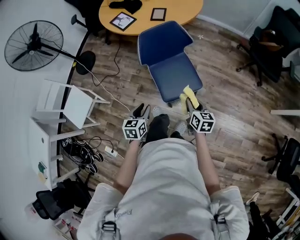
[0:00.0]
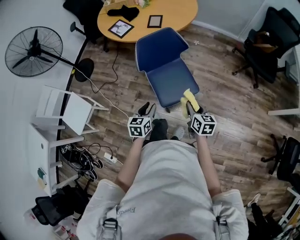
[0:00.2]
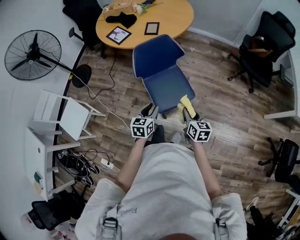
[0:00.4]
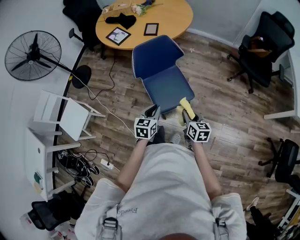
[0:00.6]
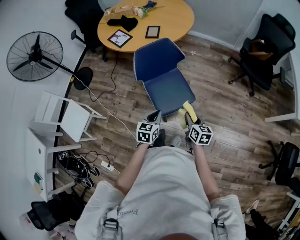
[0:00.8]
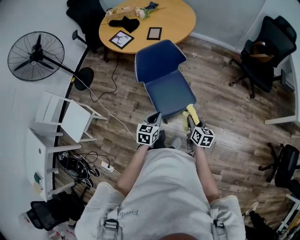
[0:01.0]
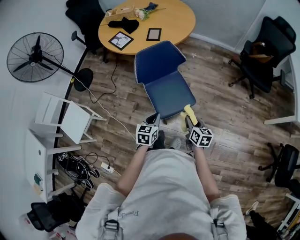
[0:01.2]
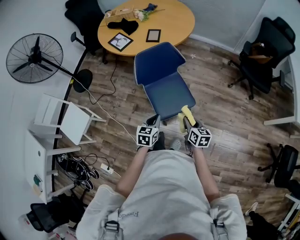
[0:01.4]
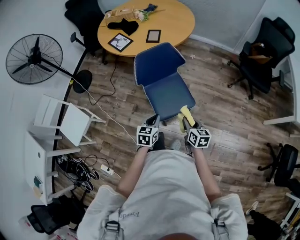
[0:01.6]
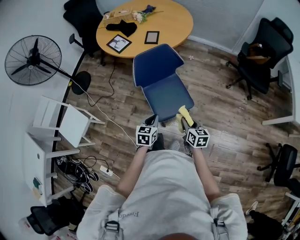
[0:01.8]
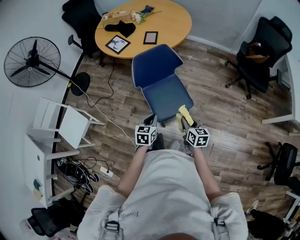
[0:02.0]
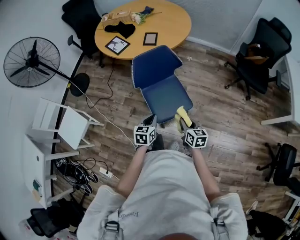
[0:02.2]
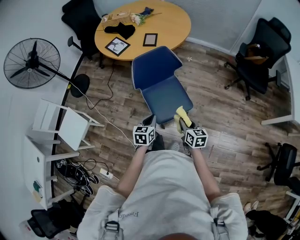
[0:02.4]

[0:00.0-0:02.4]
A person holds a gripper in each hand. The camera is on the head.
0:00.0 to 0:01.2: The left gripper moves to the right, approximately 10 cm, and closes its fingers.
0:01.2 to 0:02.4: The grippers make only small movements.

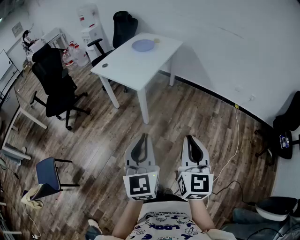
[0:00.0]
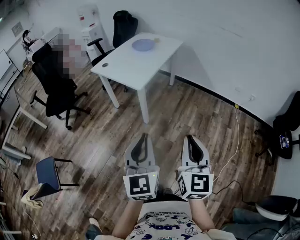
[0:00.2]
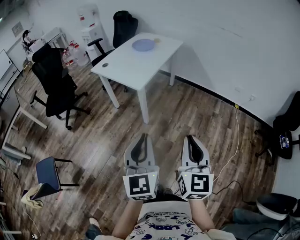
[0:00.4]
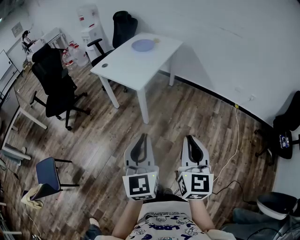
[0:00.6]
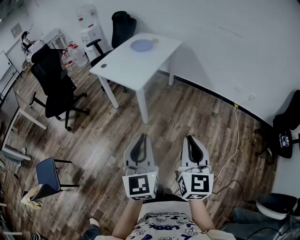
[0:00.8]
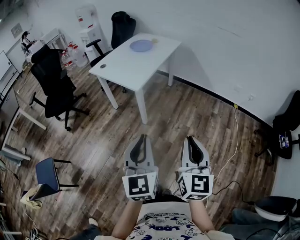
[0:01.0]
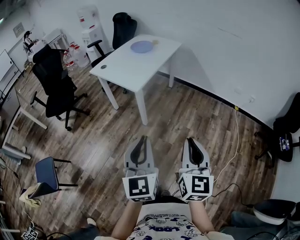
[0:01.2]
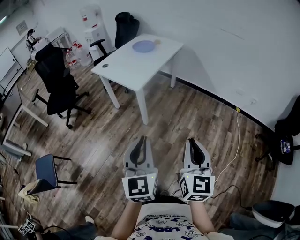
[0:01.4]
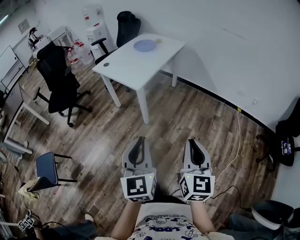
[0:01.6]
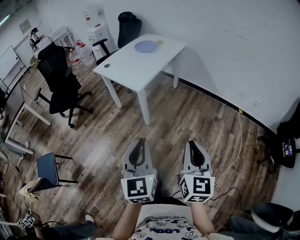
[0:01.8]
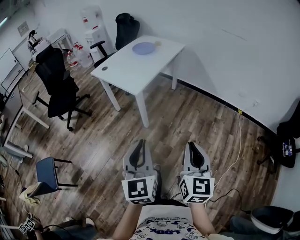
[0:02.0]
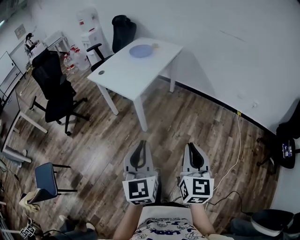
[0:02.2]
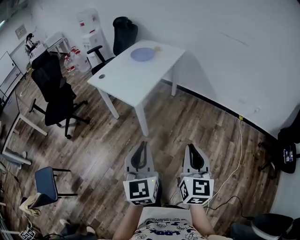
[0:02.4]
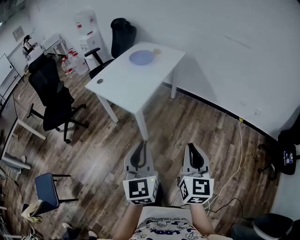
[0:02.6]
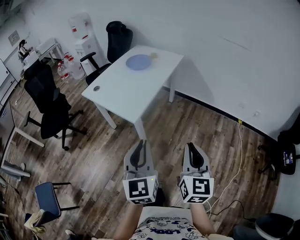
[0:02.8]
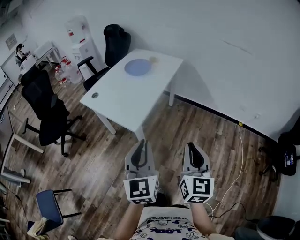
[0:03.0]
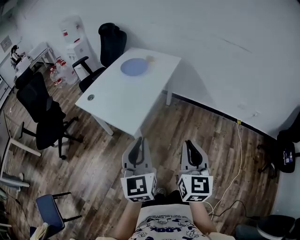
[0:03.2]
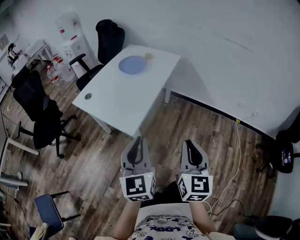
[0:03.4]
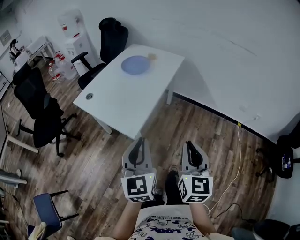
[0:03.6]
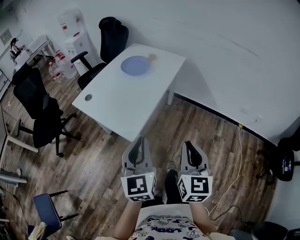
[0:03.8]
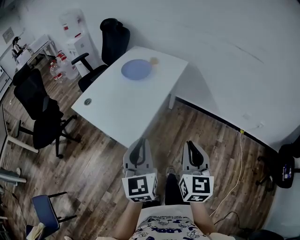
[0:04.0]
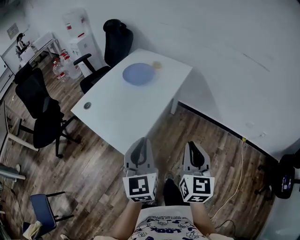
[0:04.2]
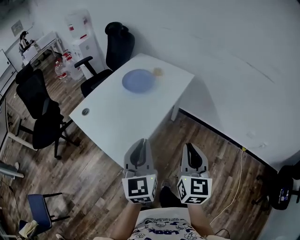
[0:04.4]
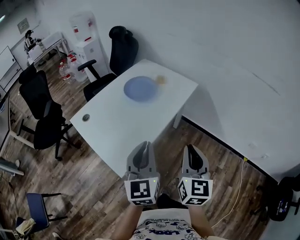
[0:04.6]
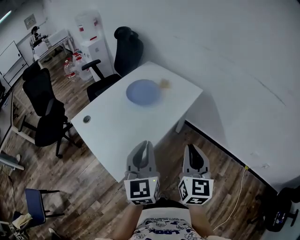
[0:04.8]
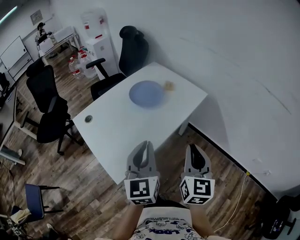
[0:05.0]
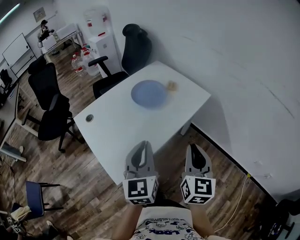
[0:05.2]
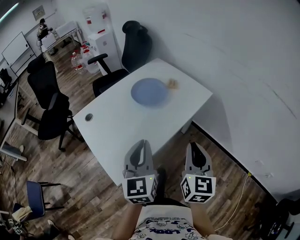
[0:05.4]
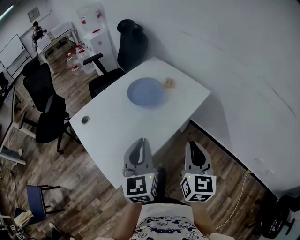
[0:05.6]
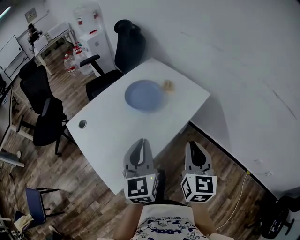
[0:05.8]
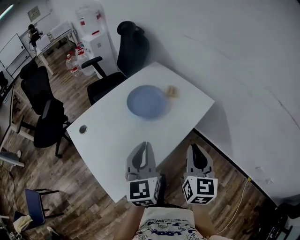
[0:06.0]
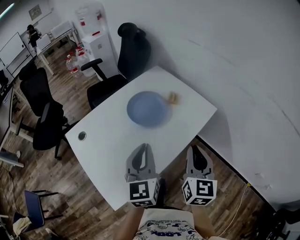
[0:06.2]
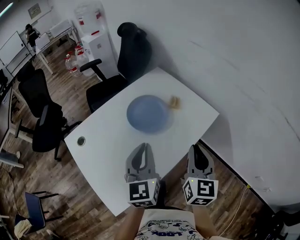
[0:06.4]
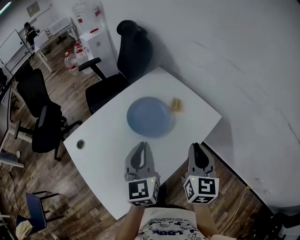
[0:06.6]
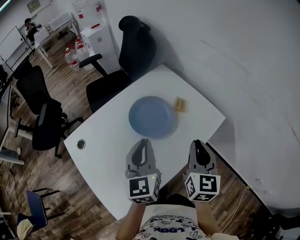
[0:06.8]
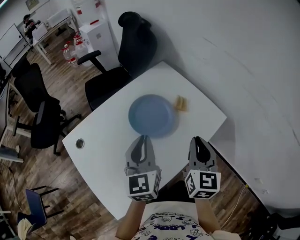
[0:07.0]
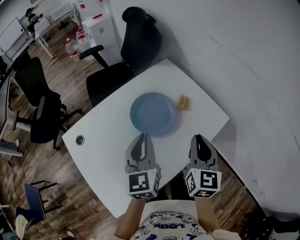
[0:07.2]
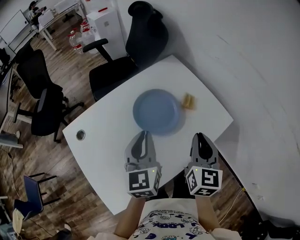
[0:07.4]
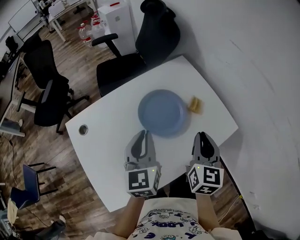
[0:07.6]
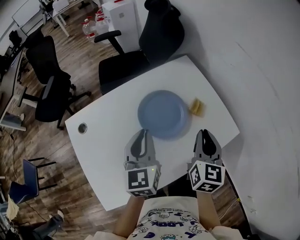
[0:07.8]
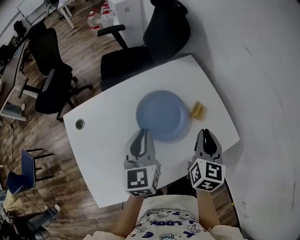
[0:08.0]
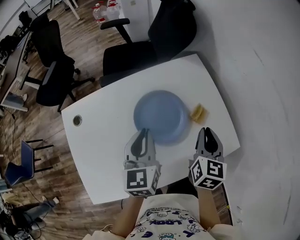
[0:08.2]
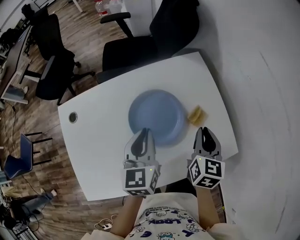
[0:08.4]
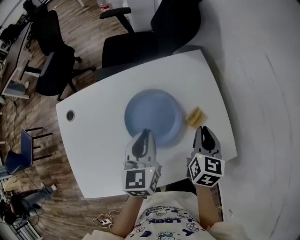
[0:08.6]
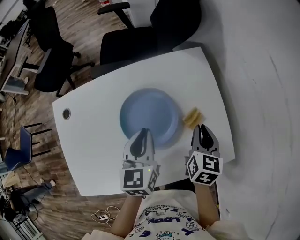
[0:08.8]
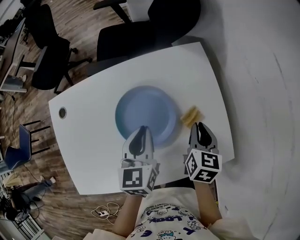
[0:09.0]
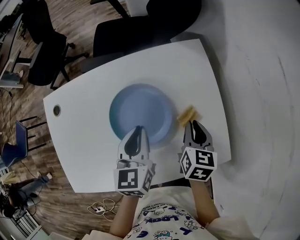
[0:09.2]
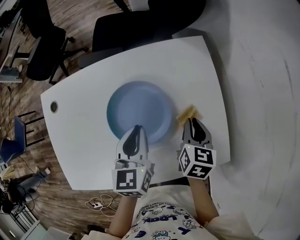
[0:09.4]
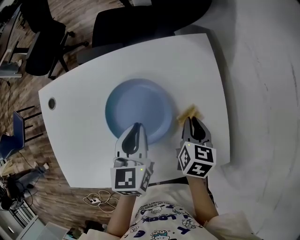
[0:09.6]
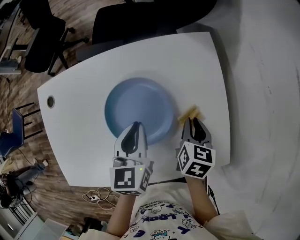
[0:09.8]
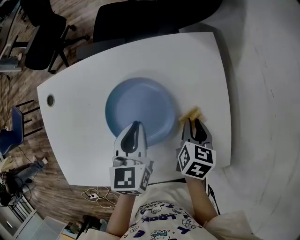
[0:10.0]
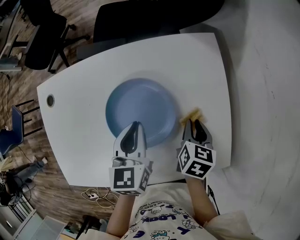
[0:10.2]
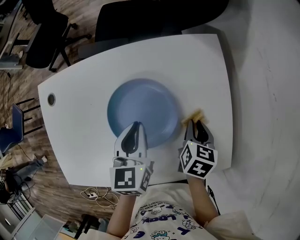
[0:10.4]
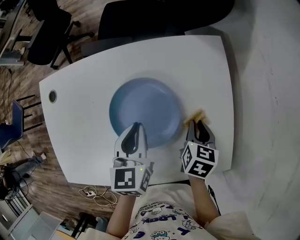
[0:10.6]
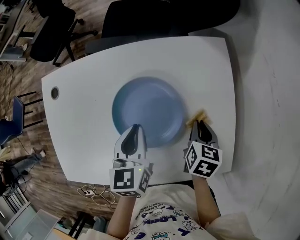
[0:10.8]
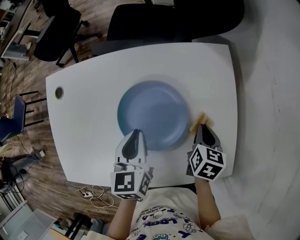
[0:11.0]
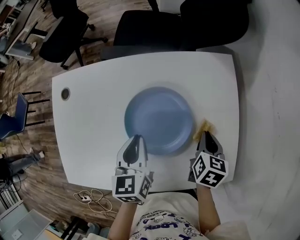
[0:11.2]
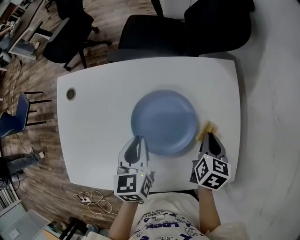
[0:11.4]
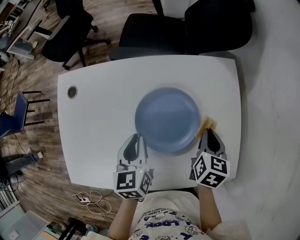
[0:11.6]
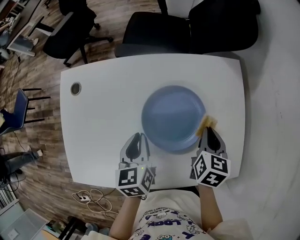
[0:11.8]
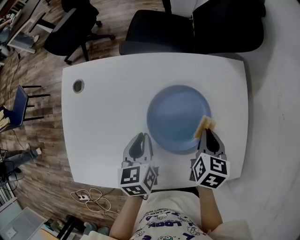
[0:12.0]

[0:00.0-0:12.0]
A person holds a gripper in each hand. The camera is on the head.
0:00.0 to 0:01.6: The right gripper moves roughly 5 cm.
0:01.6 to 0:03.0: Both grippers move forward, roughly 30 cm.
0:03.0 to 0:04.4: The two grippers go about 25 cm forward.
0:04.4 to 0:06.0: The two grippers go about 25 cm forward.
0:06.0 to 0:07.6: Both grippers move forward, approximately 20 cm.
0:07.6 to 0:09.0: Both grippers travel together forward, downward and to the right, approximately 20 cm. The right gripper turns by roughly 30 degrees.
0:09.0 to 0:10.4: The right gripper moves downward, approximately 10 cm, while the left gripper changes place by some 5 cm.
0:10.4 to 0:12.0: The right gripper goes some 10 cm to the left and upward. Meanwhile the left gripper travels to the left and backward by approximately 15 cm.

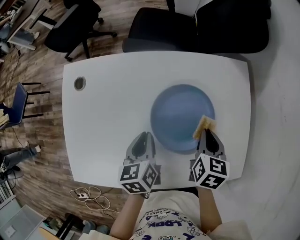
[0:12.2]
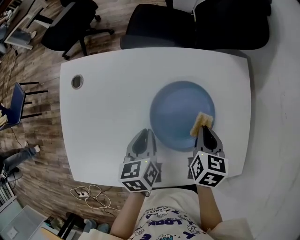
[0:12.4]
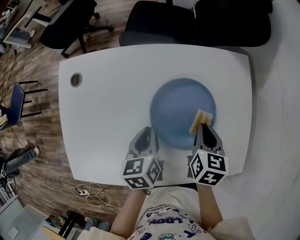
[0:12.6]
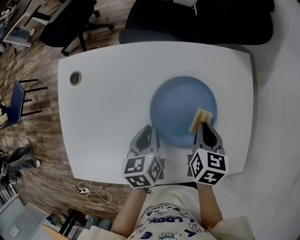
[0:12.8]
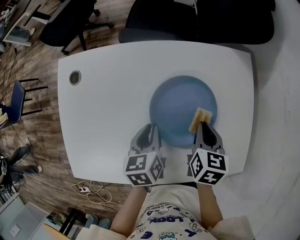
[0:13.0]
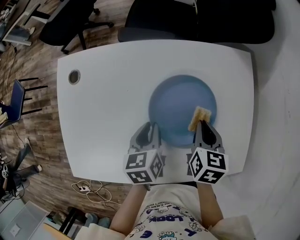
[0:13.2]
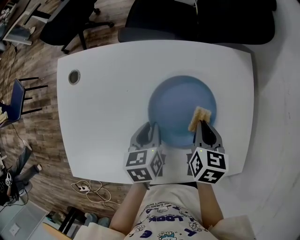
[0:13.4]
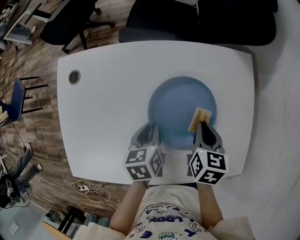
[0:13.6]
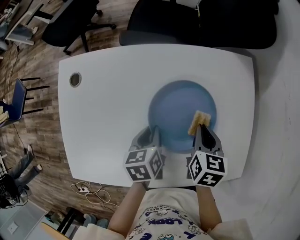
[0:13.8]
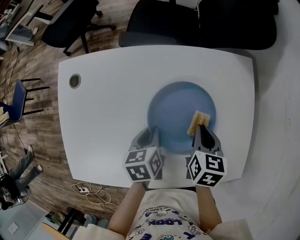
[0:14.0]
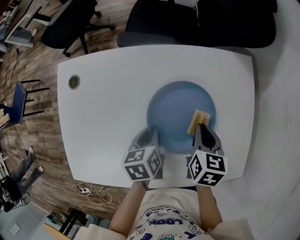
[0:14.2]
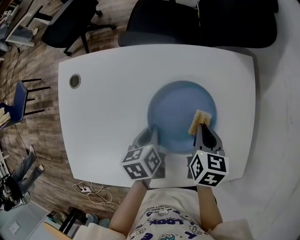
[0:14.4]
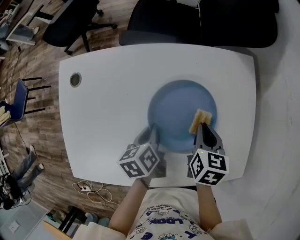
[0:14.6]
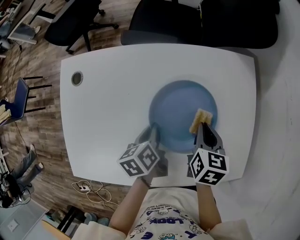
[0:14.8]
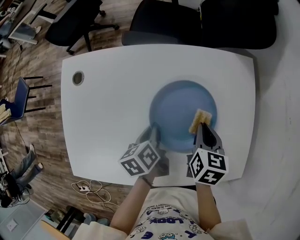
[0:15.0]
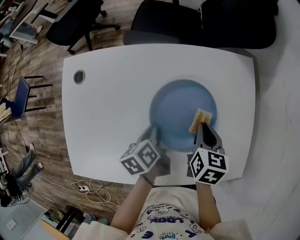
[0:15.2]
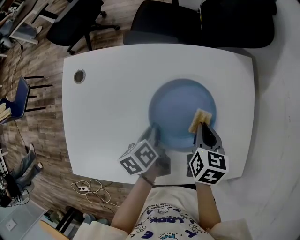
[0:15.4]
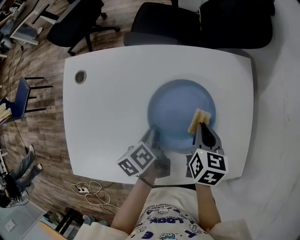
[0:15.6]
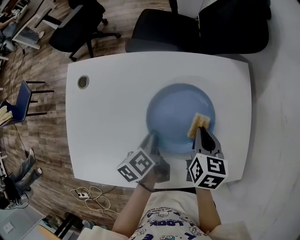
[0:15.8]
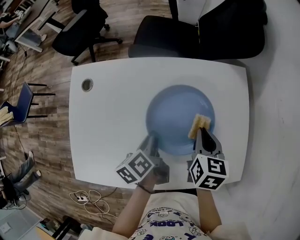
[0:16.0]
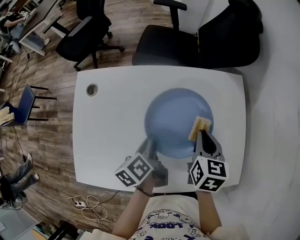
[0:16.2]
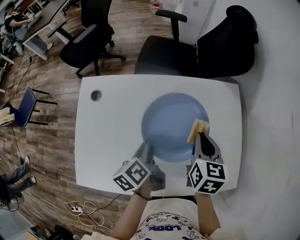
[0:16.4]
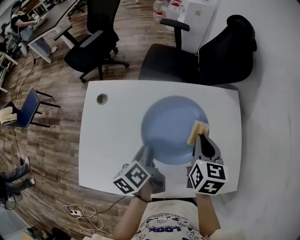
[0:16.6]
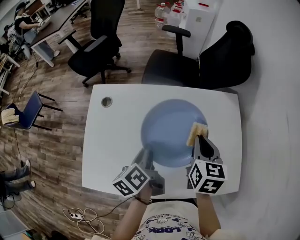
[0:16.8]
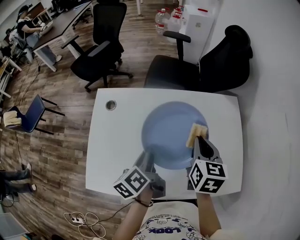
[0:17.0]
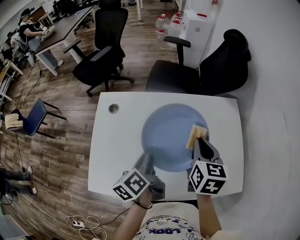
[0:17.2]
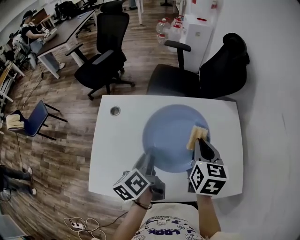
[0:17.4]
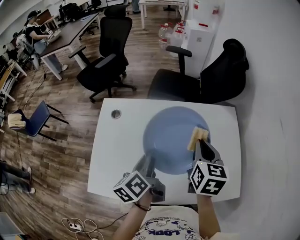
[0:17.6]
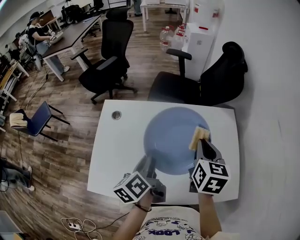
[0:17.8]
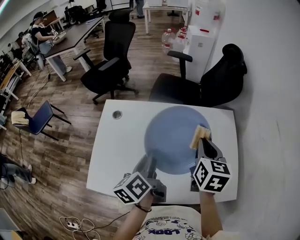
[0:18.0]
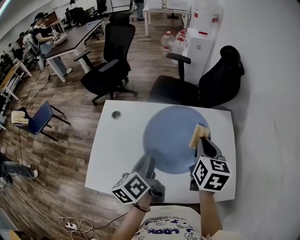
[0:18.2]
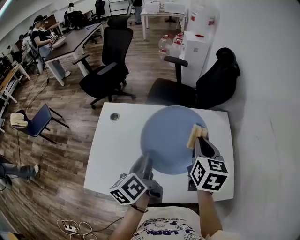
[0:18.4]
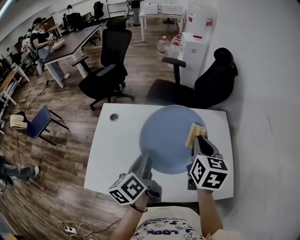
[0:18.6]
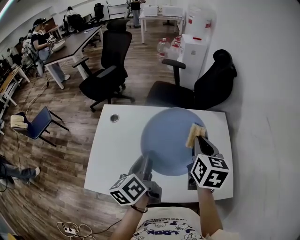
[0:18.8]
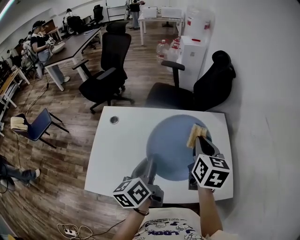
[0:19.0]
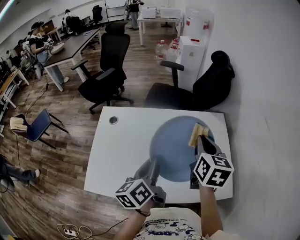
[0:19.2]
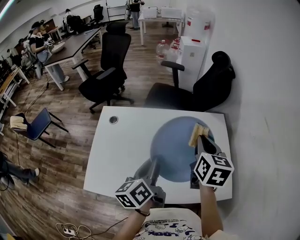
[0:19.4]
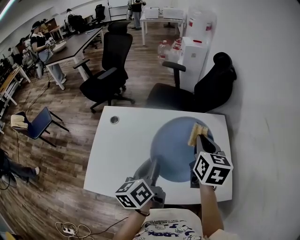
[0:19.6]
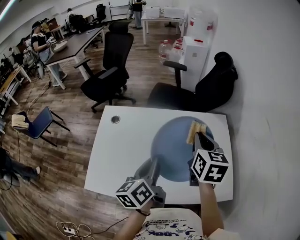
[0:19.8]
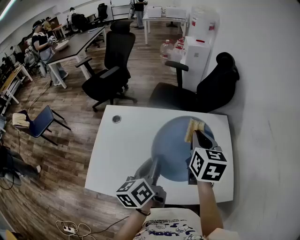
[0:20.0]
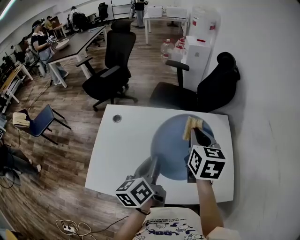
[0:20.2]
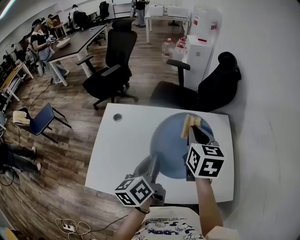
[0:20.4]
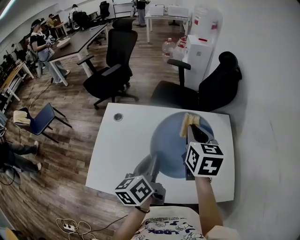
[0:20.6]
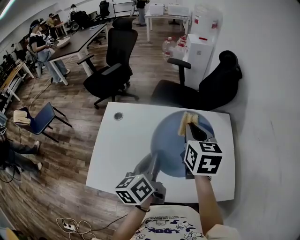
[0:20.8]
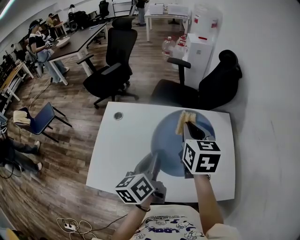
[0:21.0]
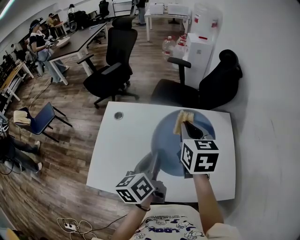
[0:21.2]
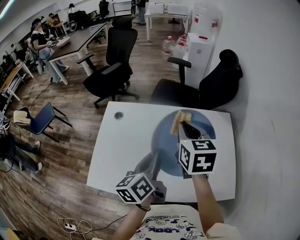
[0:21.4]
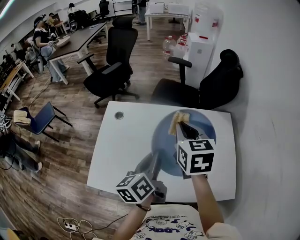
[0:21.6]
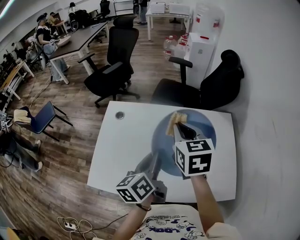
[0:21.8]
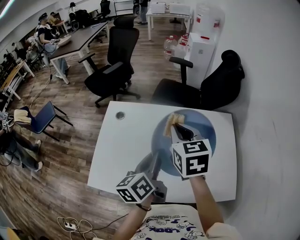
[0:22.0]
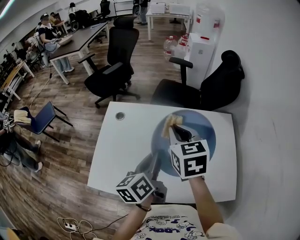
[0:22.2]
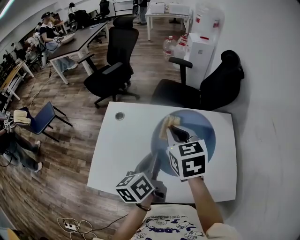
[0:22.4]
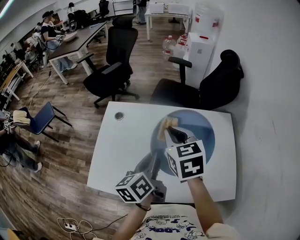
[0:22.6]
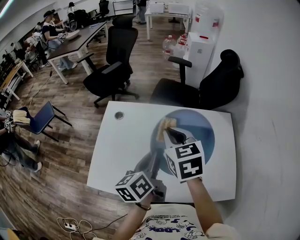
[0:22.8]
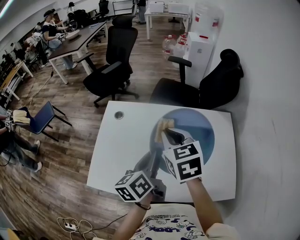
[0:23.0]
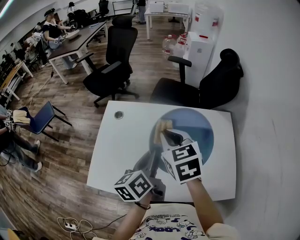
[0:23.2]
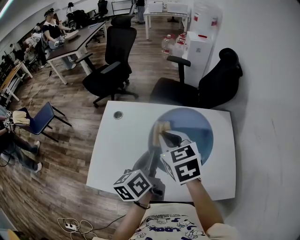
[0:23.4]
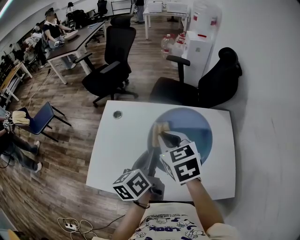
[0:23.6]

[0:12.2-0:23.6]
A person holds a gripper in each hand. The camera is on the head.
0:12.2 to 0:13.6: The left gripper changes place by about 5 cm.
0:13.6 to 0:15.0: The left gripper swivels some 20 degrees.
0:15.0 to 0:16.4: Both grippers move upward, about 10 cm.
0:16.4 to 0:17.8: The grippers both shift upward by approximately 10 cm.
0:17.8 to 0:19.4: The left gripper moves to the right, some 5 cm, while the right gripper shifts by about 5 cm.
0:19.4 to 0:20.8: The right gripper travels to the left by roughly 5 cm.
0:20.8 to 0:22.2: The right gripper is displaced to the left by some 10 cm.
0:22.2 to 0:23.6: The grippers move only a little.
